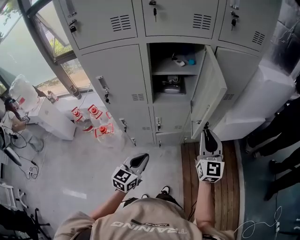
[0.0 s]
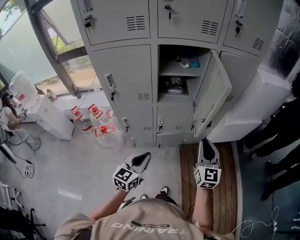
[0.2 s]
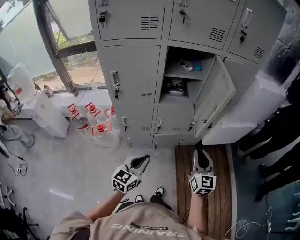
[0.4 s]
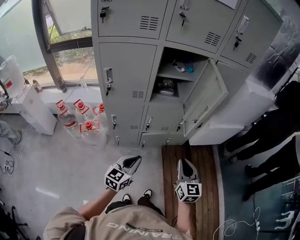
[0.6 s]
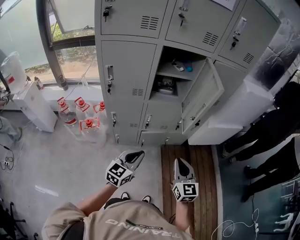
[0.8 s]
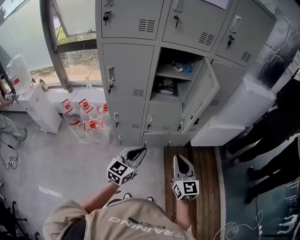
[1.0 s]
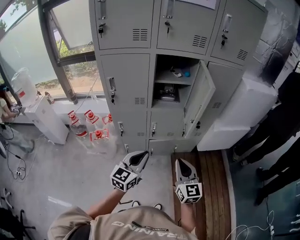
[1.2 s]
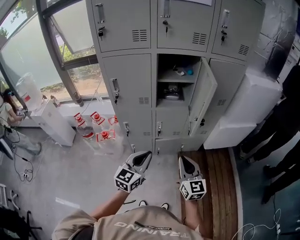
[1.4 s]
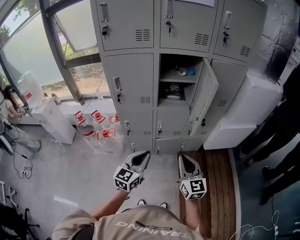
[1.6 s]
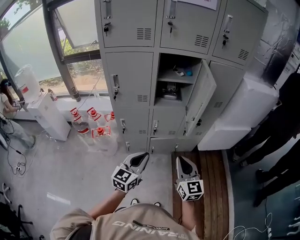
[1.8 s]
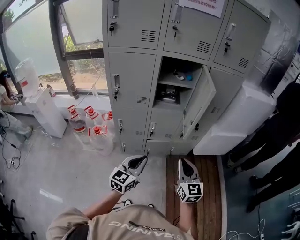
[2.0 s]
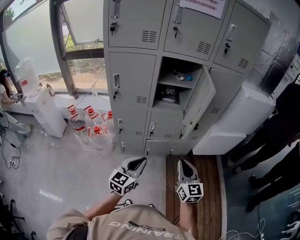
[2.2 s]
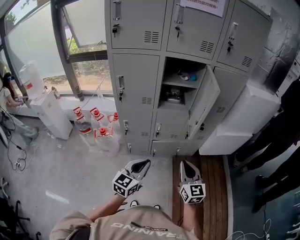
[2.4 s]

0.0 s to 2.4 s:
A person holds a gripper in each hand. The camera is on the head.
0.0 to 1.2 s: The right gripper heads backward, covering approximately 20 cm, while the left gripper is displaced upward and backward by approximately 10 cm.
1.2 to 2.4 s: The left gripper ends up about 5 cm from where it was.

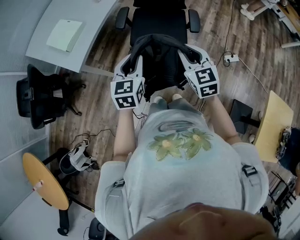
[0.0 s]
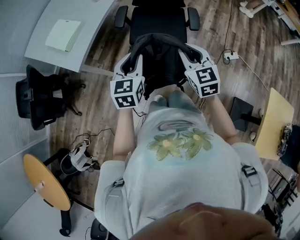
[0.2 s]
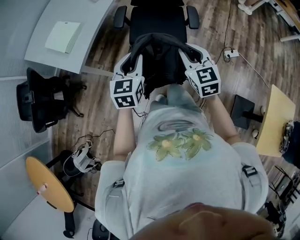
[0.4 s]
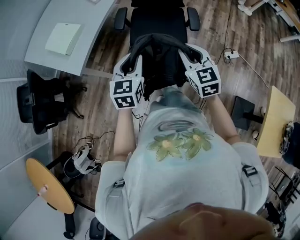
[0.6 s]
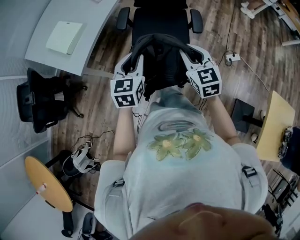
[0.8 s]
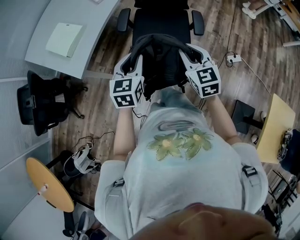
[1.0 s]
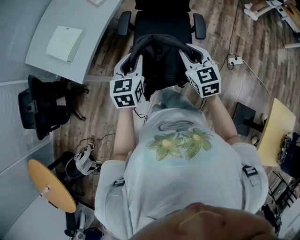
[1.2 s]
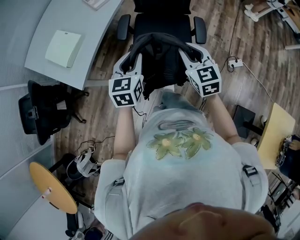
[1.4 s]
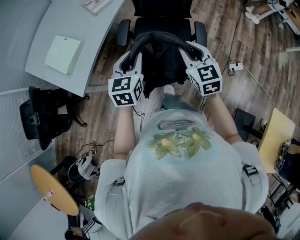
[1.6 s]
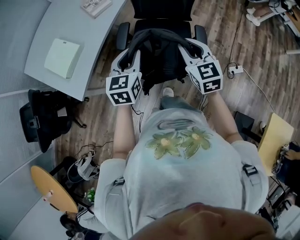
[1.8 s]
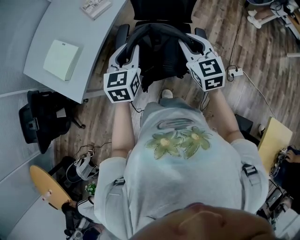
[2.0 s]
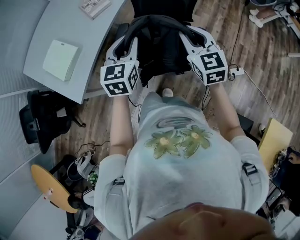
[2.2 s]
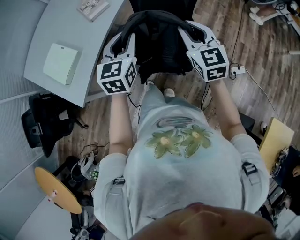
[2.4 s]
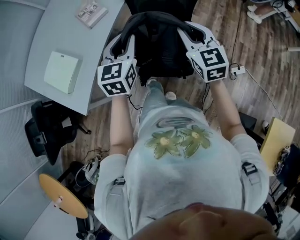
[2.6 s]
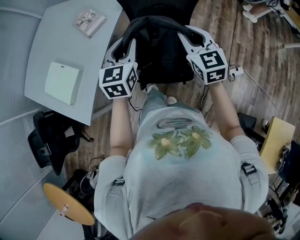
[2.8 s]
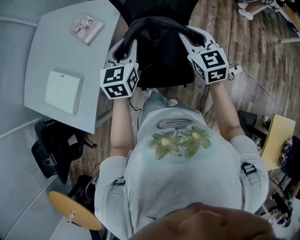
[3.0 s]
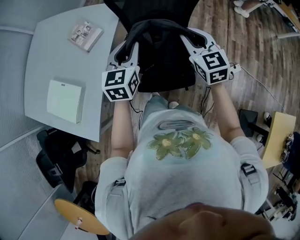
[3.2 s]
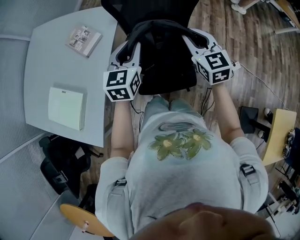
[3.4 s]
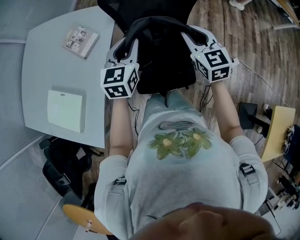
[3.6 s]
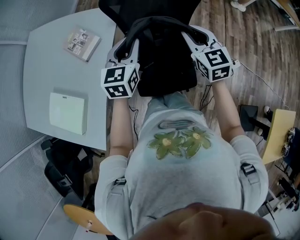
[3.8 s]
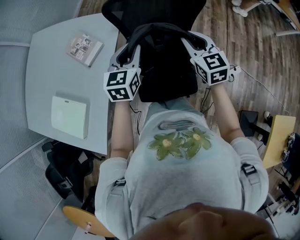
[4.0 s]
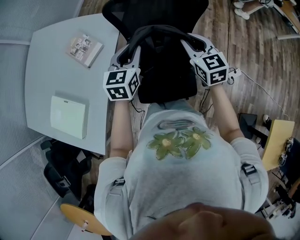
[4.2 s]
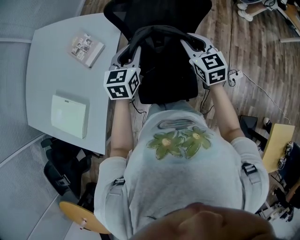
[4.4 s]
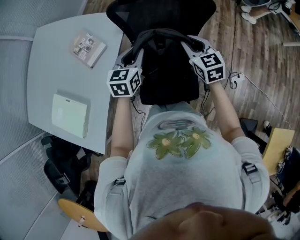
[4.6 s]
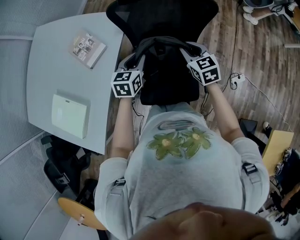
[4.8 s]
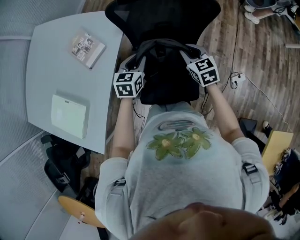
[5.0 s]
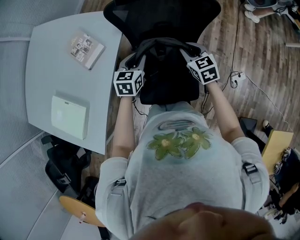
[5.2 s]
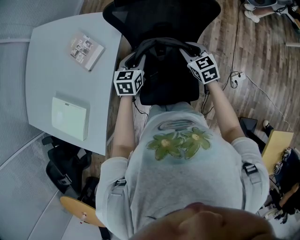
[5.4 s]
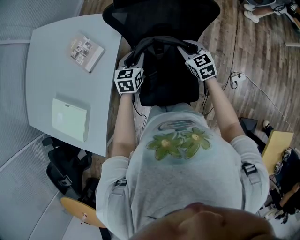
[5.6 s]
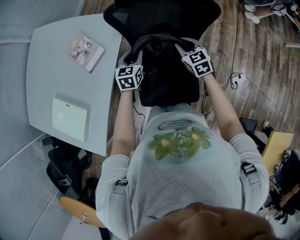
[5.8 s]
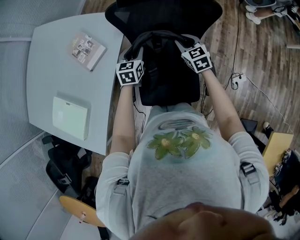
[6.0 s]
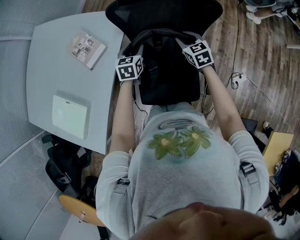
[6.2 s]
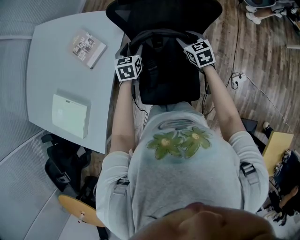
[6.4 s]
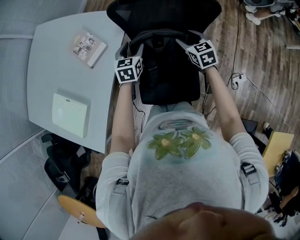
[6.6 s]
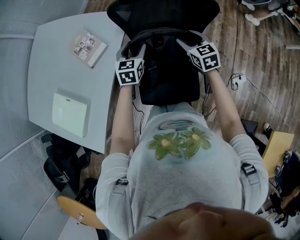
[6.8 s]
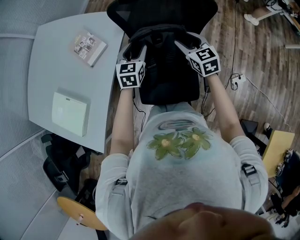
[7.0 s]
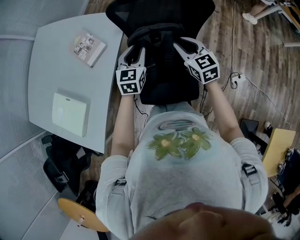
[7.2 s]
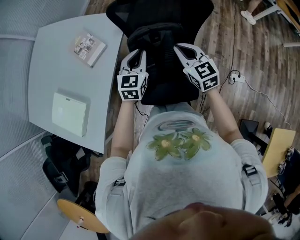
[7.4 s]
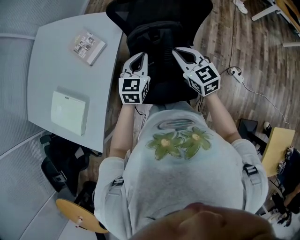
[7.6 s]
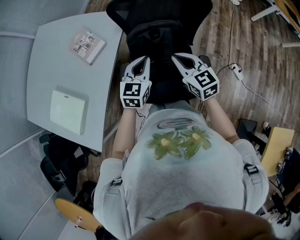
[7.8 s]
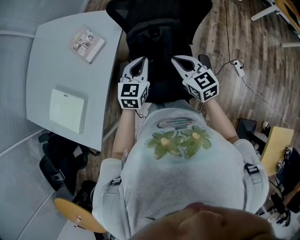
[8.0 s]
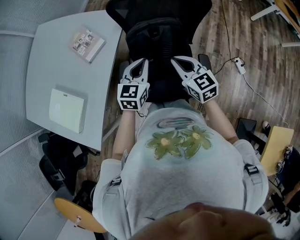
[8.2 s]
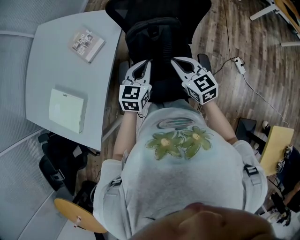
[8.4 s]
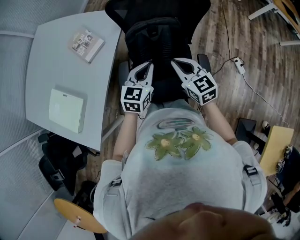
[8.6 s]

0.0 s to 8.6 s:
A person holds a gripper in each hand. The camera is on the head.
0.0 to 1.4 s: Both grippers travel together forward, some 15 cm.
1.4 to 2.8 s: The grippers both shift forward by some 25 cm.
2.8 to 4.4 s: Both grippers travel together forward, about 15 cm.
4.4 to 5.8 s: Both grippers move downward and forward, approximately 15 cm.
5.8 to 7.2 s: The left gripper goes about 10 cm upward, and opens and closes again; the right gripper shifts approximately 10 cm upward and backward, and opens, then closes once more.
7.2 to 8.6 s: The grippers both shift backward by about 10 cm. The right gripper closes; the left gripper closes its fingers.

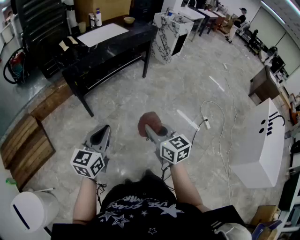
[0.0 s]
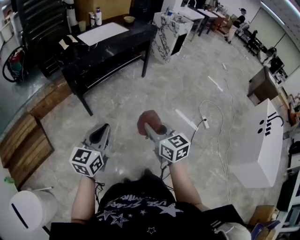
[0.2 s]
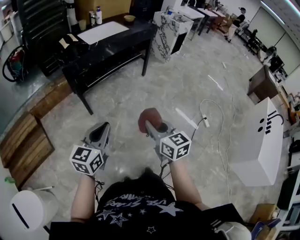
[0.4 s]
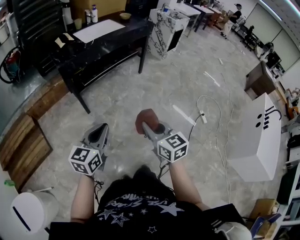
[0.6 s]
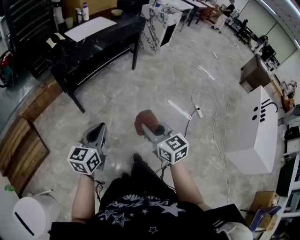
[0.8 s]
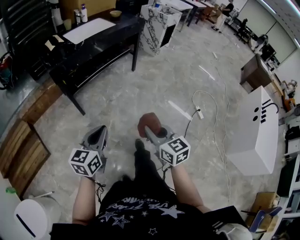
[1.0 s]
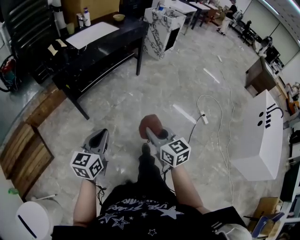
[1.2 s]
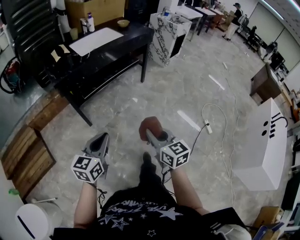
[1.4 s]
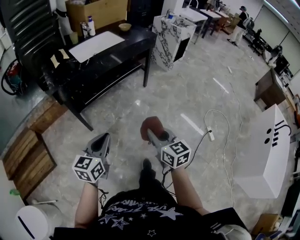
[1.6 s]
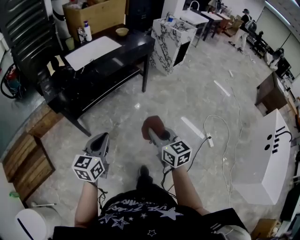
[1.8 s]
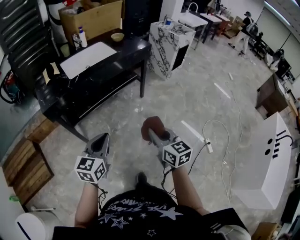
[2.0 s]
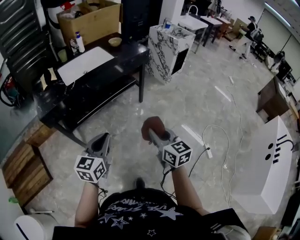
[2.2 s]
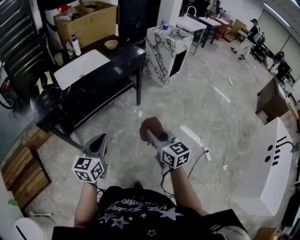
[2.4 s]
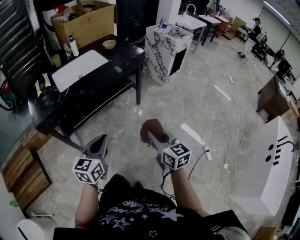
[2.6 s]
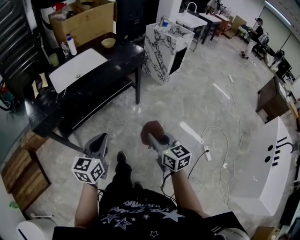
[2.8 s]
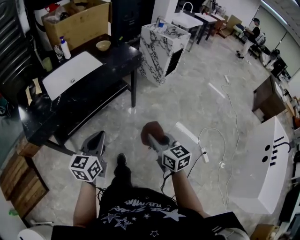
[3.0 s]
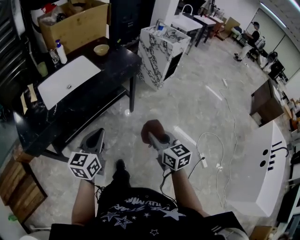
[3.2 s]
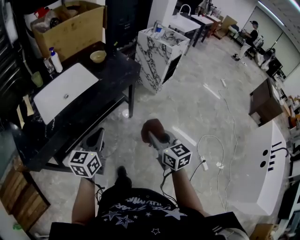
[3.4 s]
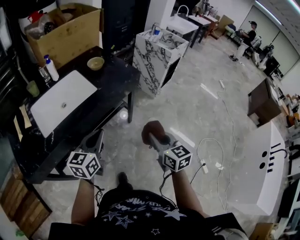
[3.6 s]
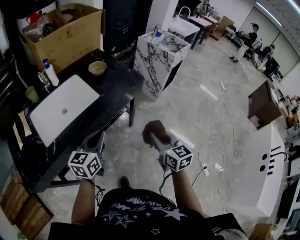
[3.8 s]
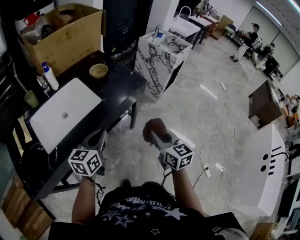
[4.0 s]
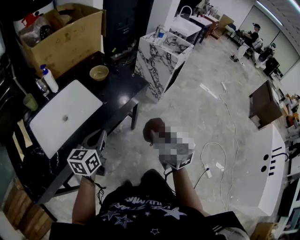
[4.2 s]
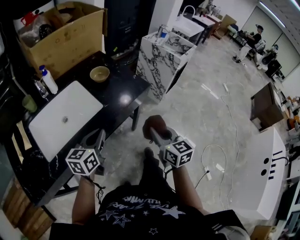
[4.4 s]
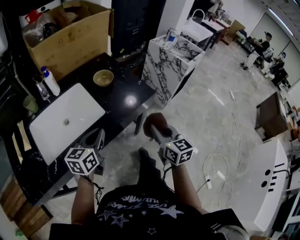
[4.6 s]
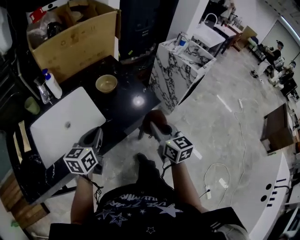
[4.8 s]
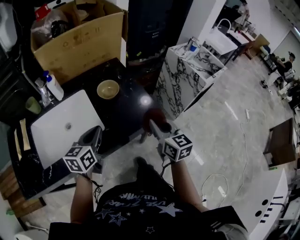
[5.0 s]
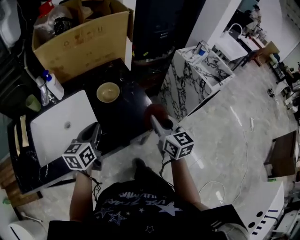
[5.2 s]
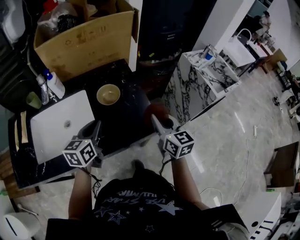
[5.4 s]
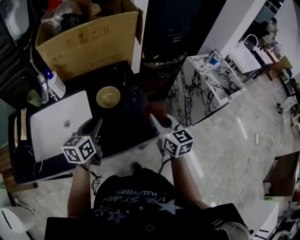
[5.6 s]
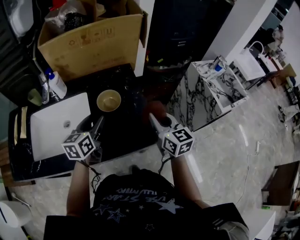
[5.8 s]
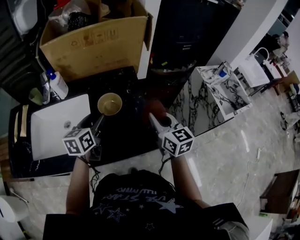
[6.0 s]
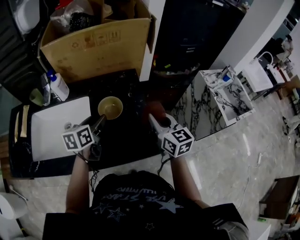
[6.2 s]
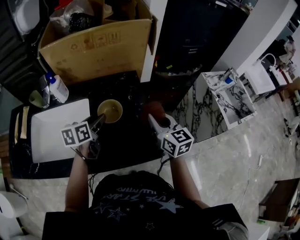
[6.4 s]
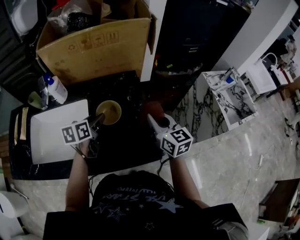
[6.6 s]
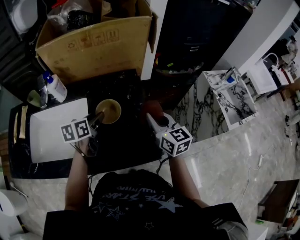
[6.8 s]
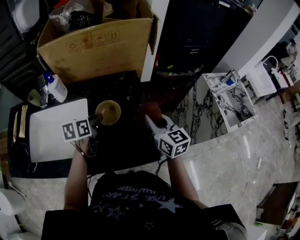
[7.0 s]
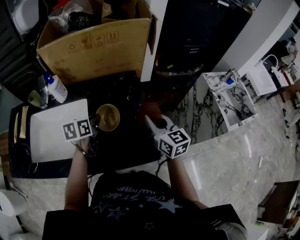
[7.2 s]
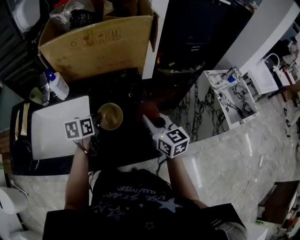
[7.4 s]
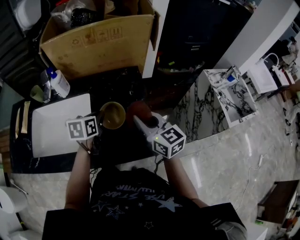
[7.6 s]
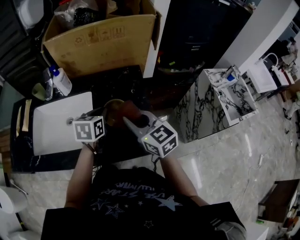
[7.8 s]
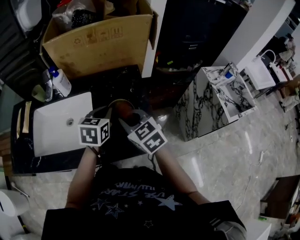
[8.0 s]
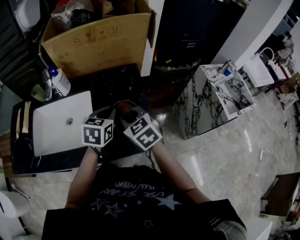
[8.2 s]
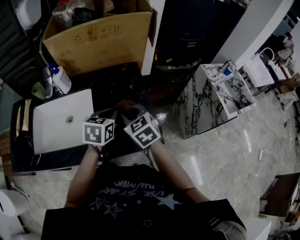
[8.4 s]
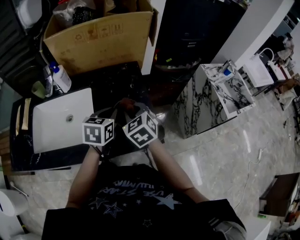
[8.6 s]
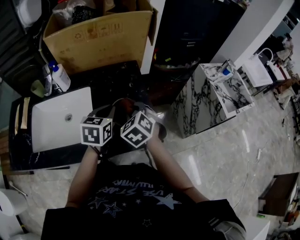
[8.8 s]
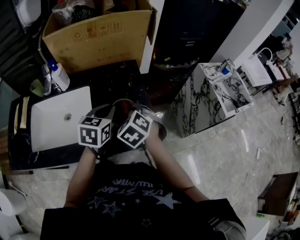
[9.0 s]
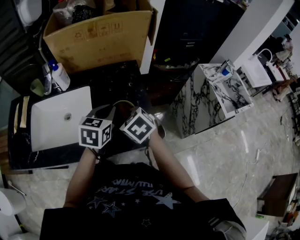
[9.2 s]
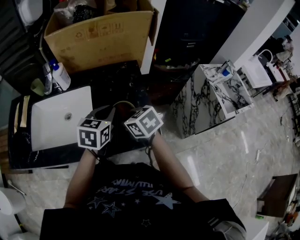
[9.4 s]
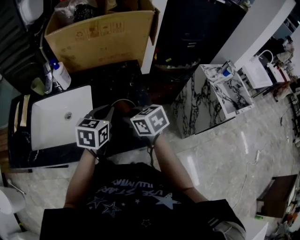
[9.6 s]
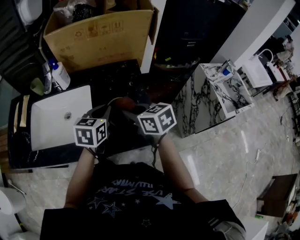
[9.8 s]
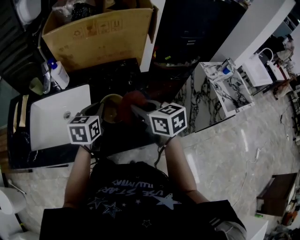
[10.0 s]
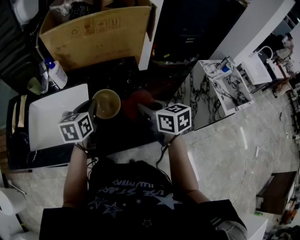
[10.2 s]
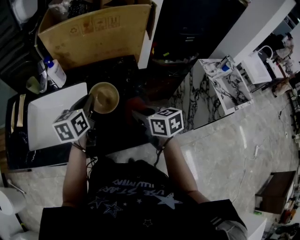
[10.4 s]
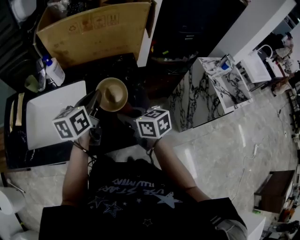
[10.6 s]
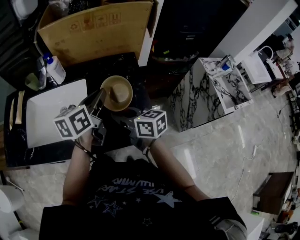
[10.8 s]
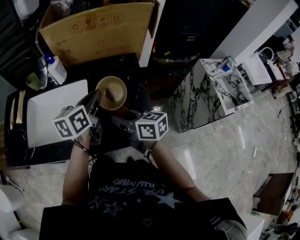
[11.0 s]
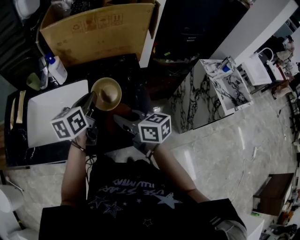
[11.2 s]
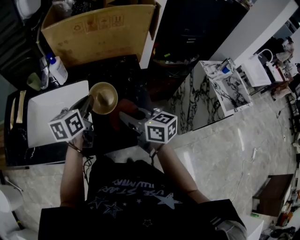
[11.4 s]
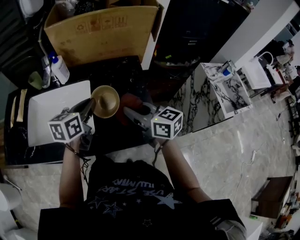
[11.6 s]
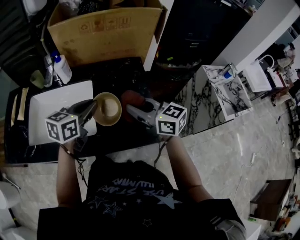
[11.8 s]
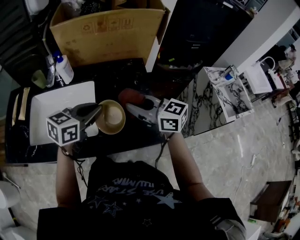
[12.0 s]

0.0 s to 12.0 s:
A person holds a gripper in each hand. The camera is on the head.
0.0 to 1.6 s: Both grippers move forward, some 15 cm.
1.6 to 3.0 s: The two grippers go roughly 30 cm forward and to the right.
3.0 to 4.4 s: Both grippers move forward, about 35 cm.
4.4 to 6.0 s: The right gripper ends up approximately 40 cm from where it was, and changes its angle by some 30 degrees. Meanwhile the left gripper shifts by some 30 cm, swivels about 40 degrees, and opens up.
6.0 to 7.6 s: The right gripper travels to the left by approximately 5 cm. The left gripper ends up some 5 cm from where it was, and closes up.
7.6 to 9.0 s: The right gripper is displaced downward by some 5 cm, and angles its fingers downward, by roughly 40 degrees. Meanwhile the left gripper moves backward, to the right and upward, roughly 10 cm, and rotates about 20 degrees.
9.0 to 10.4 s: The right gripper twists roughly 50 degrees clockwise, seen from behind, while the left gripper travels to the left by approximately 5 cm, and rotates about 20 degrees.
10.4 to 12.0 s: The right gripper is displaced upward and to the left by approximately 10 cm, and turns by about 30 degrees; the left gripper travels backward by roughly 5 cm, and changes its angle by about 30 degrees.
